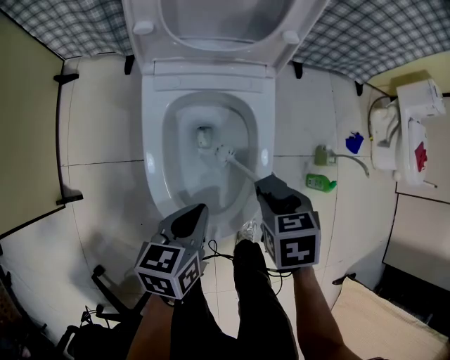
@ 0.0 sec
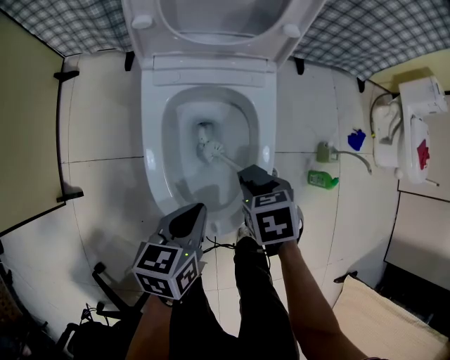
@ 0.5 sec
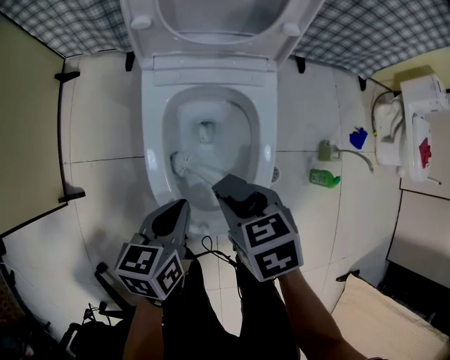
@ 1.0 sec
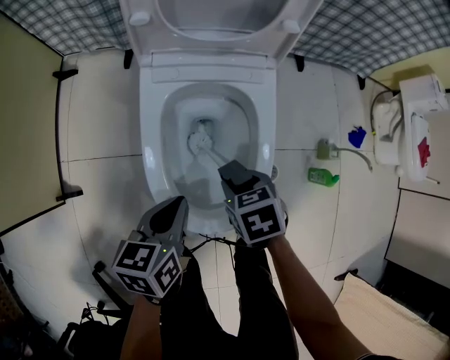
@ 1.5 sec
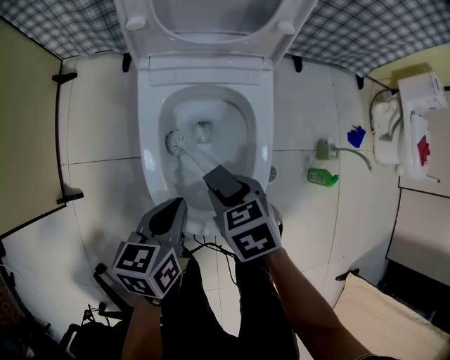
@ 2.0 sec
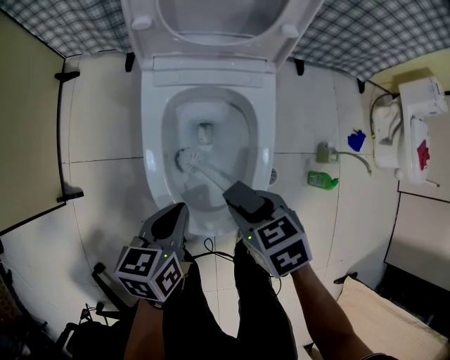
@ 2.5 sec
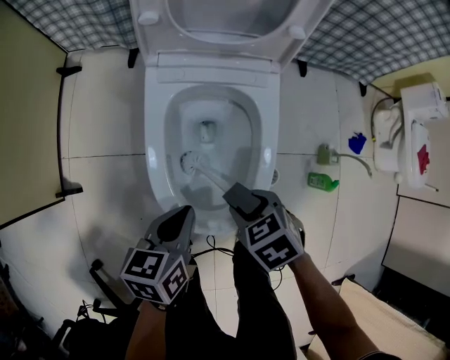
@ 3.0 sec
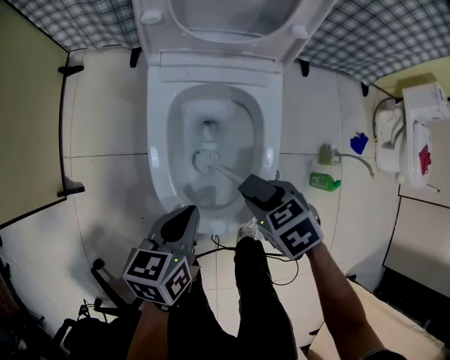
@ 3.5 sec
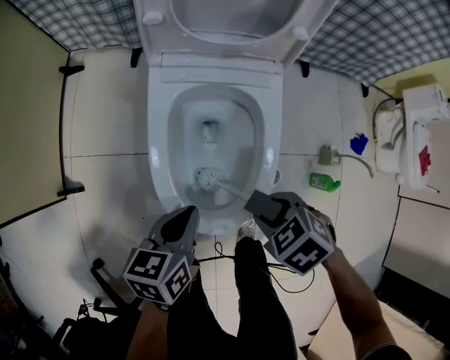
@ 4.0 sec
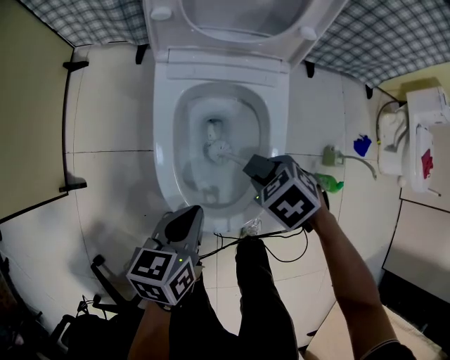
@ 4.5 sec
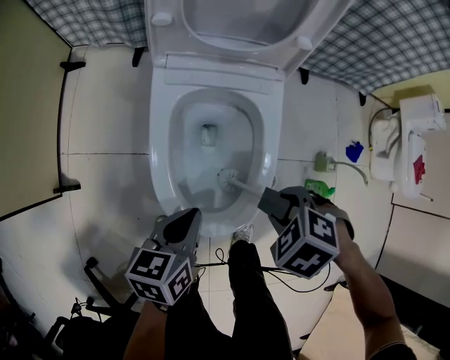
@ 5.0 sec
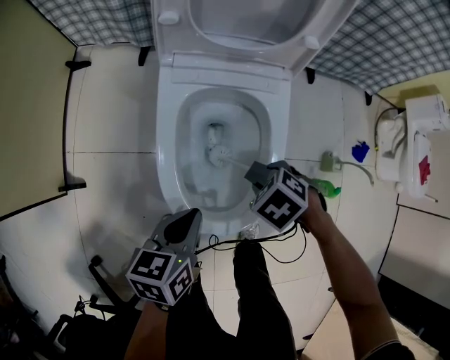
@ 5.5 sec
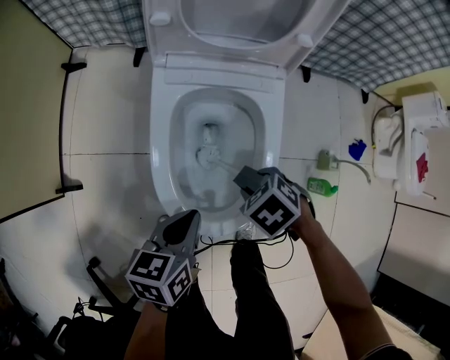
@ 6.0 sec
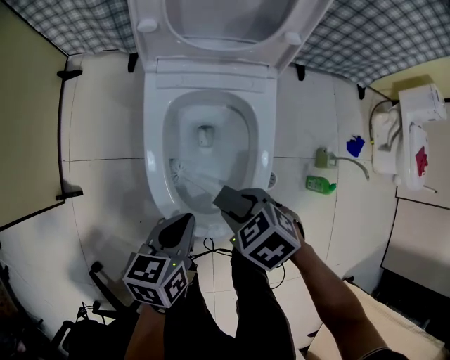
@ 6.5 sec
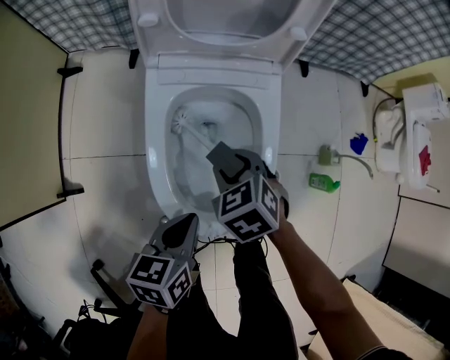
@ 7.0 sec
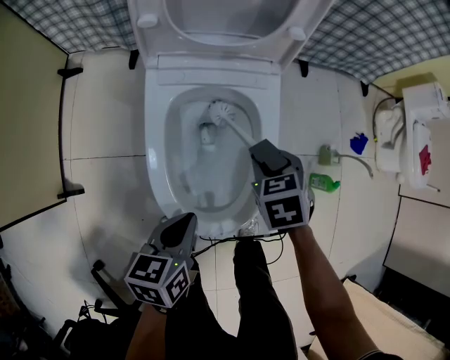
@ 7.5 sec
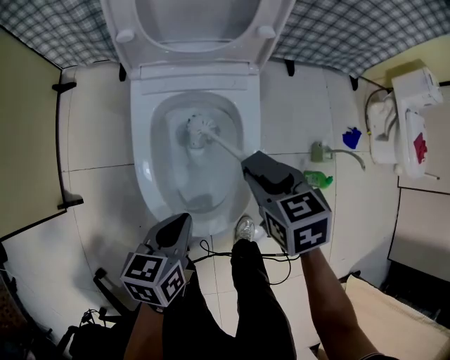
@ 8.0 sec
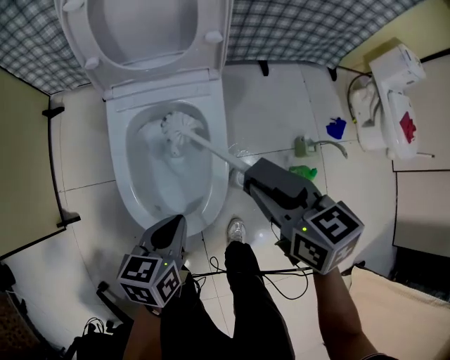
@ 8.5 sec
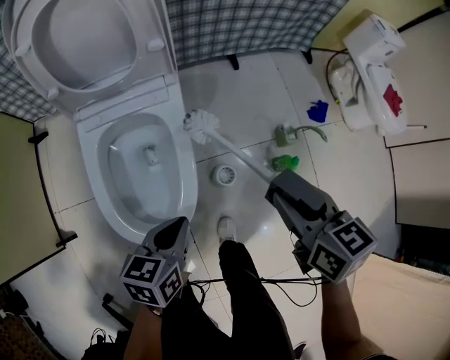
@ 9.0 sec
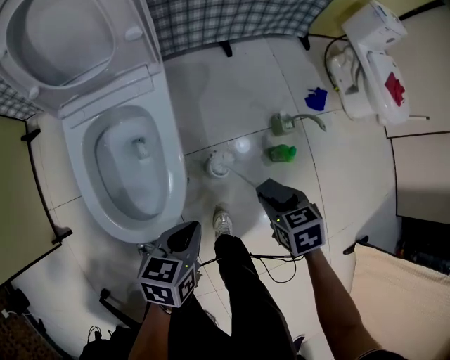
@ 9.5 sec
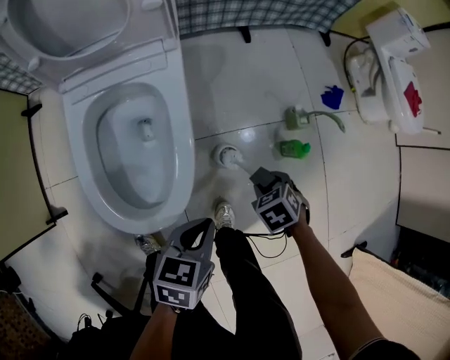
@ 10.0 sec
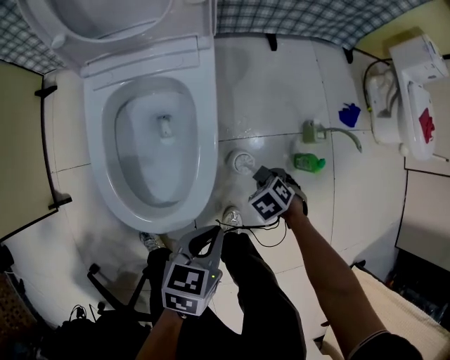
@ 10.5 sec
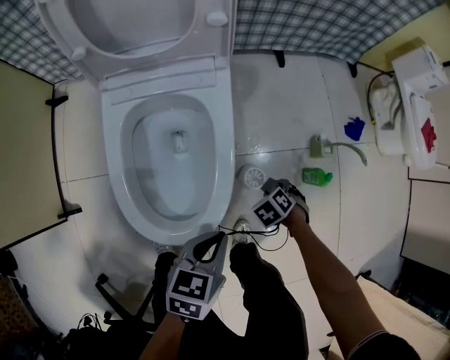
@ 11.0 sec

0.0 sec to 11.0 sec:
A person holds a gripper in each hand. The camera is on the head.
0.0 sec to 2.0 sec: The right gripper travels to the left by some 10 cm, and changes its angle by some 20 degrees.
2.0 sec to 3.5 sec: The right gripper moves to the right, about 5 cm.
3.5 sec to 5.5 sec: The right gripper goes upward and returns, roughly 5 cm each way, and turns by roughly 30 degrees.
5.5 sec to 7.5 sec: The right gripper shifts by about 5 cm, and swivels approximately 40 degrees.
7.5 sec to 9.0 sec: The left gripper shifts about 15 cm to the right, while the right gripper travels to the right and upward by some 25 cm, and changes its angle by approximately 40 degrees.
9.0 sec to 11.0 sec: The right gripper goes approximately 35 cm downward, and angles its fingers downward, by roughly 40 degrees; the left gripper moves downward, some 5 cm.

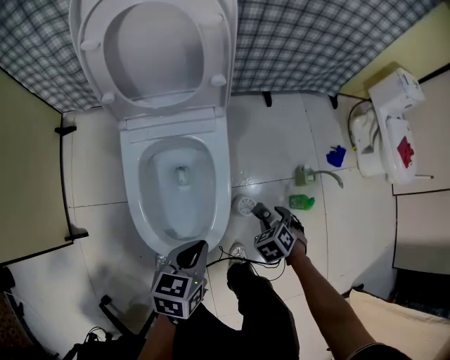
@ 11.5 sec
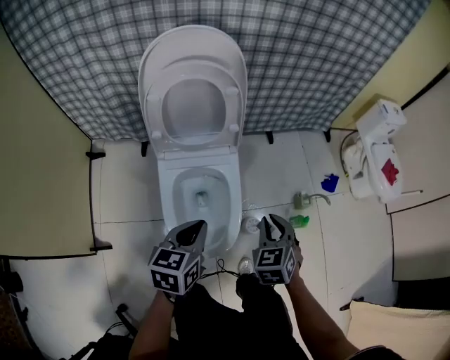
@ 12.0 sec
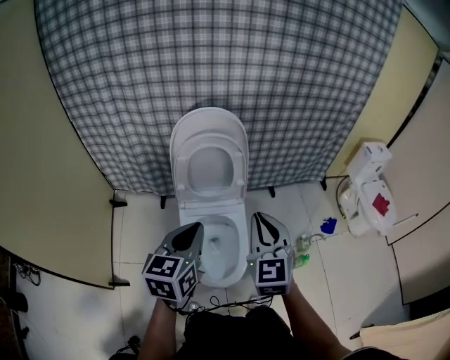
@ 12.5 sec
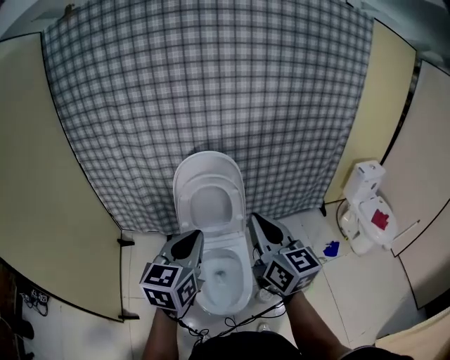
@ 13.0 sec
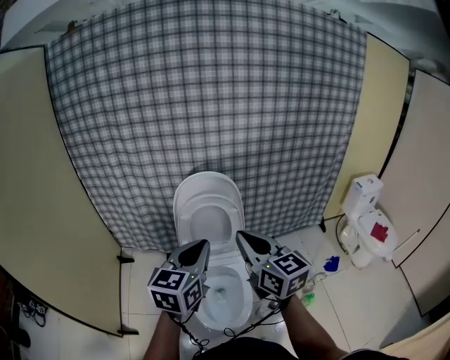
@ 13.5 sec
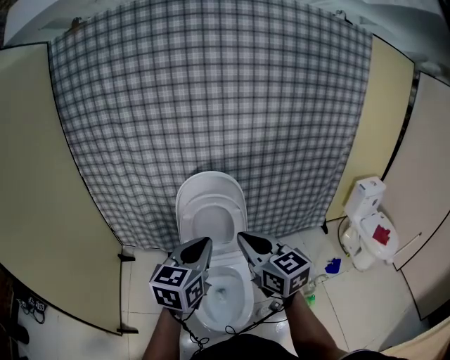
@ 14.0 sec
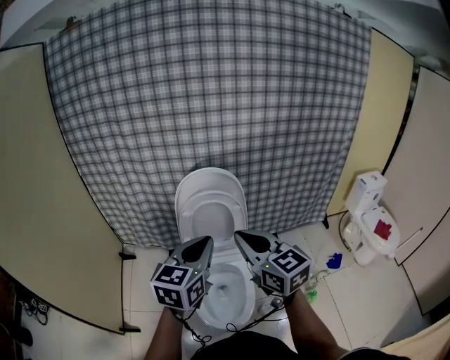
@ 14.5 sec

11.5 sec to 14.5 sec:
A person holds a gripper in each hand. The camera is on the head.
11.5 sec to 13.0 sec: Both grippers move upward, approximately 60 cm. The right gripper tips its fingers upward by some 80 degrees, and closes up. The left gripper angles its fingers upward, by approximately 30 degrees.
13.0 sec to 14.5 sec: The right gripper changes place by some 5 cm, and swivels about 20 degrees.

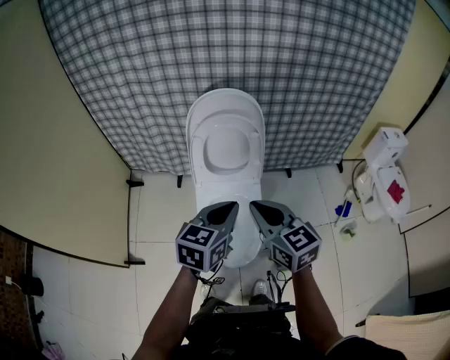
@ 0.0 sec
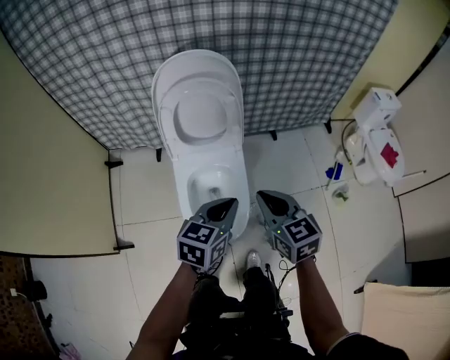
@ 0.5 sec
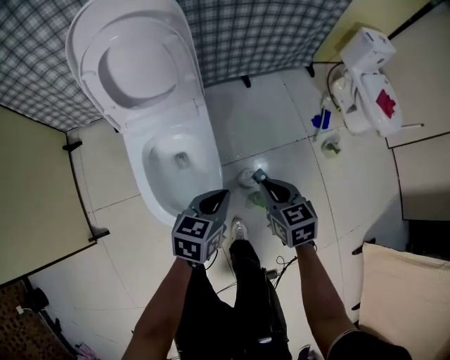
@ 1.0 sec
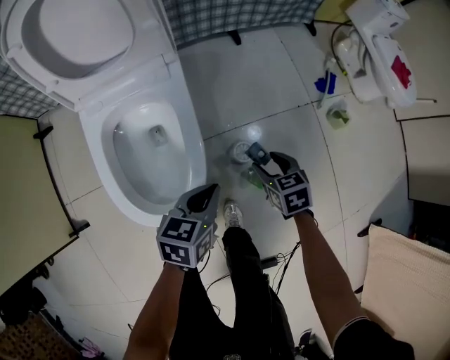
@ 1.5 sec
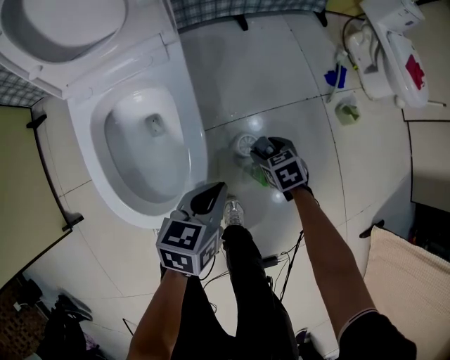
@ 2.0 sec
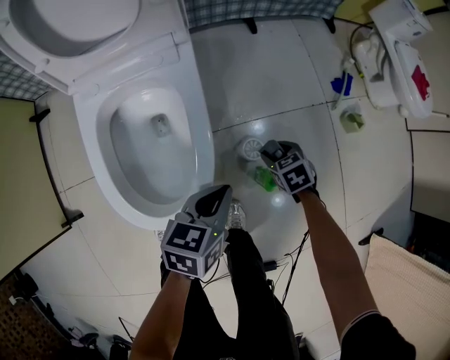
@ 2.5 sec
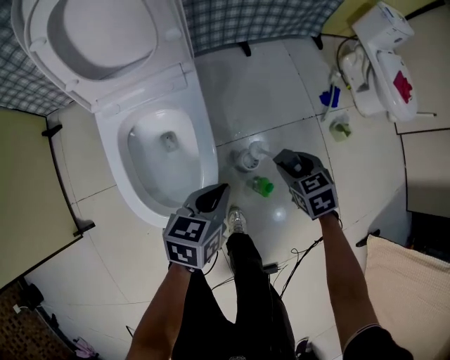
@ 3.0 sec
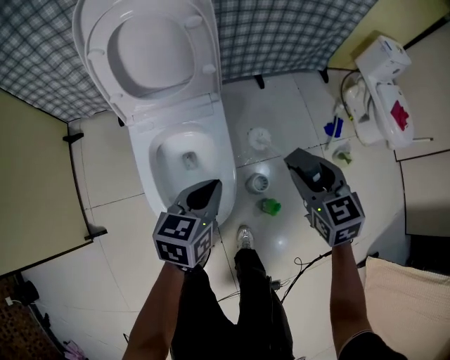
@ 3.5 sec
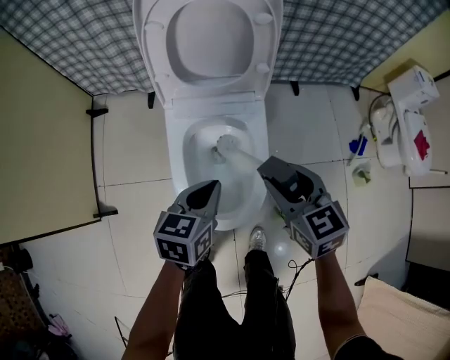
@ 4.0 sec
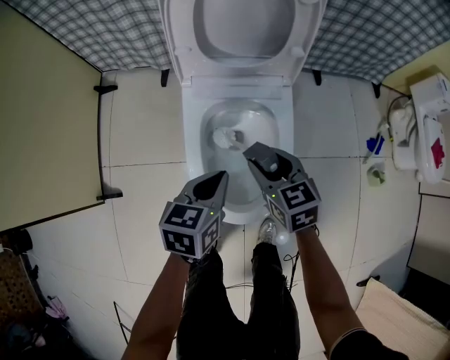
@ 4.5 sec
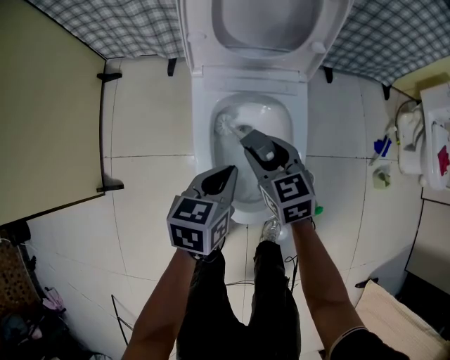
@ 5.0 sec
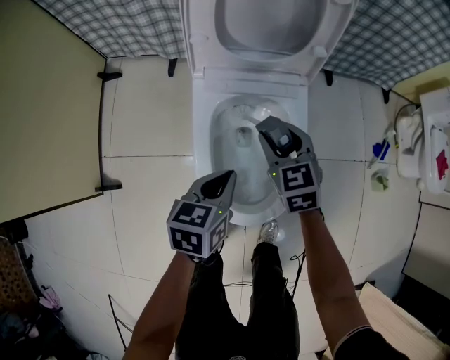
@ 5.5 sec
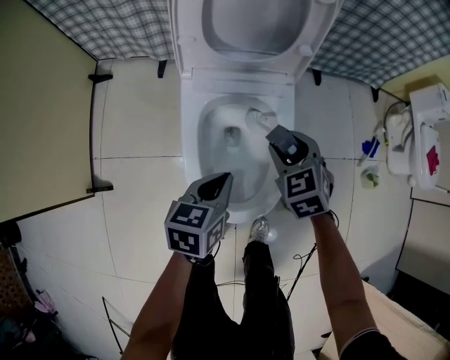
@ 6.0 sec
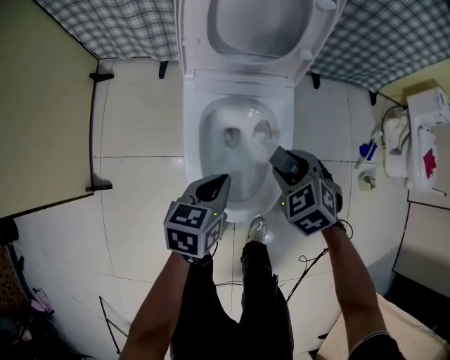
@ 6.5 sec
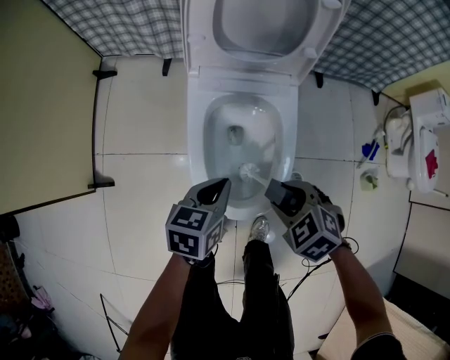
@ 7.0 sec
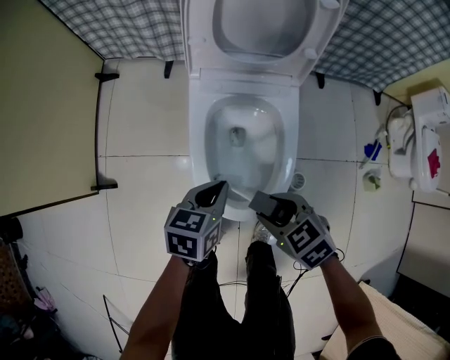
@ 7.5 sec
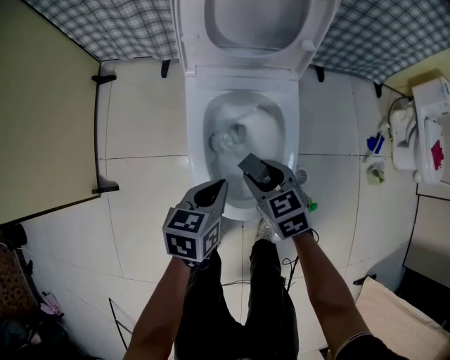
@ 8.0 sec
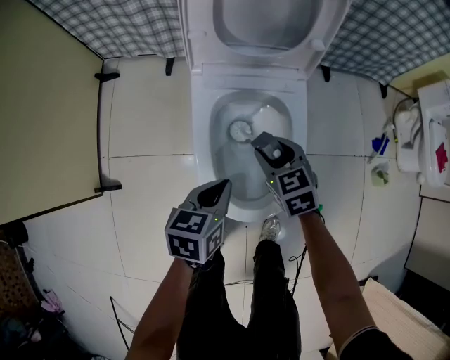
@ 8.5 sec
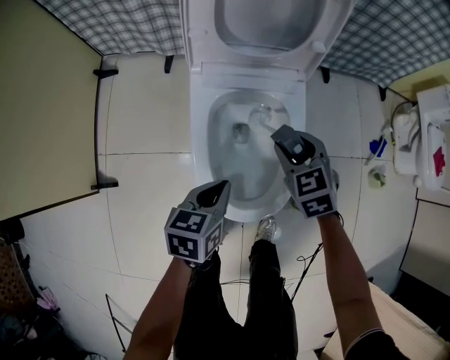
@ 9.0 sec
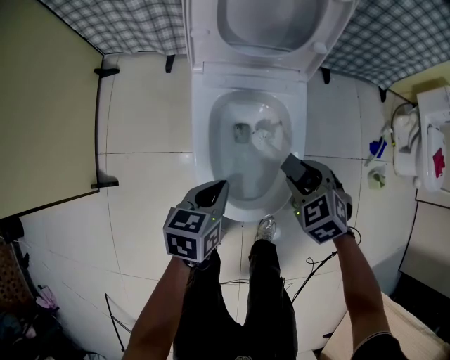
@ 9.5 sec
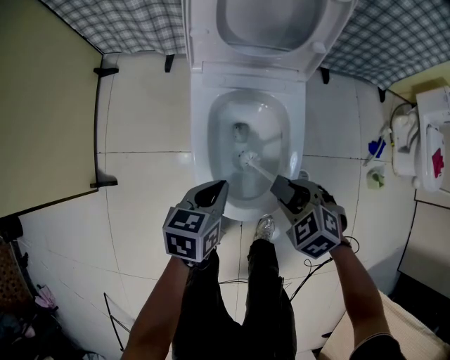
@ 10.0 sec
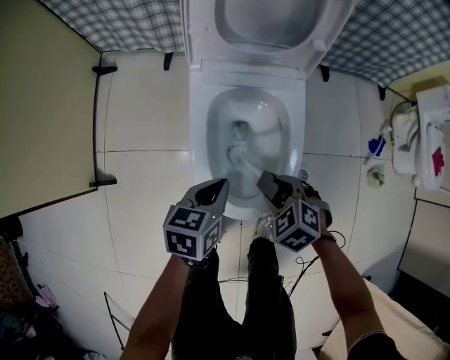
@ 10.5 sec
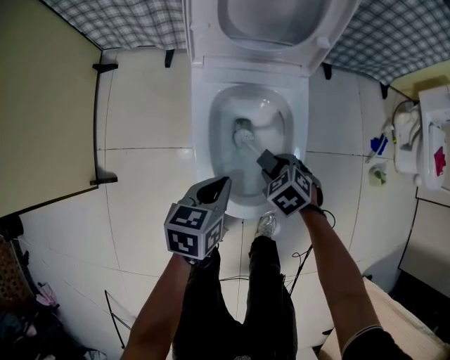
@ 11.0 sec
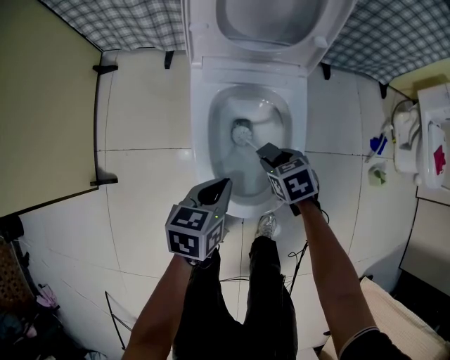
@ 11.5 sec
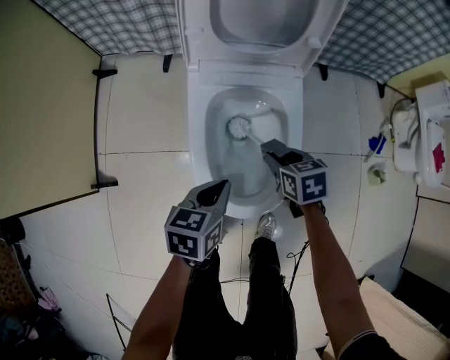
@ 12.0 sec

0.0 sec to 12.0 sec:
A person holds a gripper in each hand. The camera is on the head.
0.0 sec to 2.0 sec: Both grippers move downward and to the right, about 60 cm. The right gripper tilts its fingers roughly 50 degrees downward, and opens up. Meanwhile the left gripper swivels about 30 degrees.
2.0 sec to 4.0 sec: The right gripper travels upward and to the left by about 40 cm, and tips its fingers upward by about 30 degrees, while the left gripper travels to the left and upward by roughly 25 cm.
4.0 sec to 6.0 sec: The right gripper travels downward and forward by roughly 15 cm, and turns by about 30 degrees; the left gripper moves downward, about 10 cm.
6.0 sec to 8.0 sec: The right gripper travels backward and to the left by approximately 10 cm, and changes its angle by about 20 degrees.
8.0 sec to 10.0 sec: The right gripper heads to the right and backward, covering roughly 10 cm, and rotates roughly 30 degrees.
10.0 sec to 12.0 sec: The right gripper is displaced forward by some 10 cm, and twists about 40 degrees clockwise, seen from behind.
